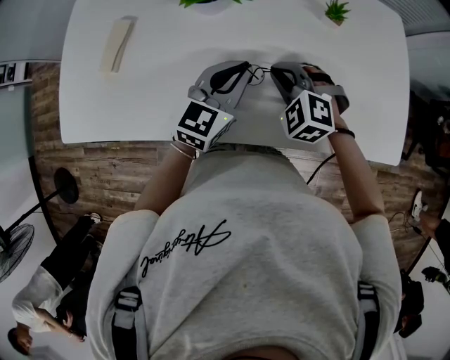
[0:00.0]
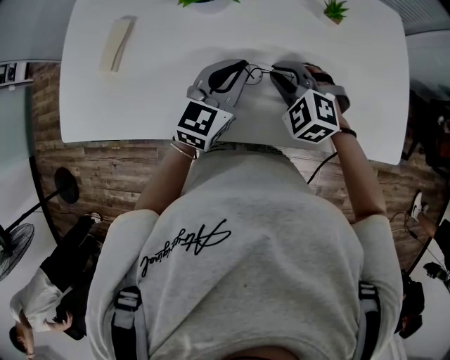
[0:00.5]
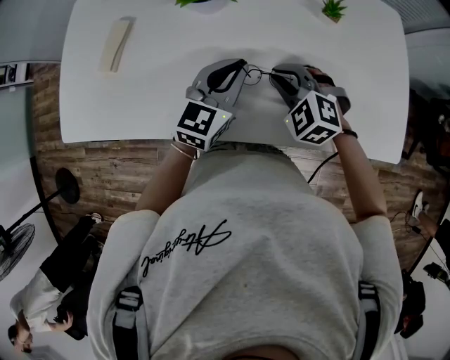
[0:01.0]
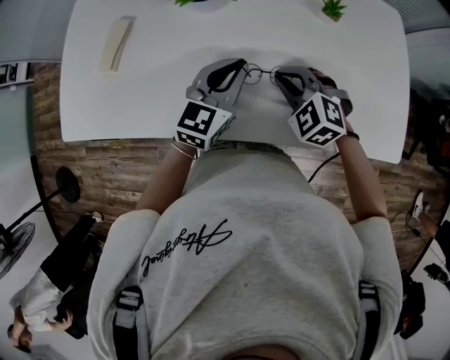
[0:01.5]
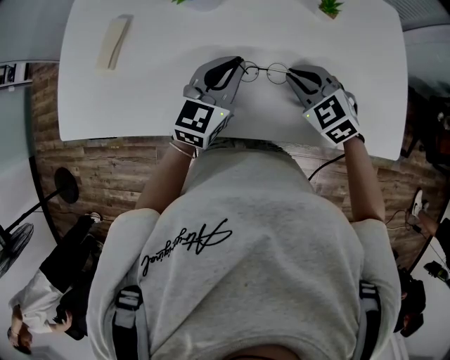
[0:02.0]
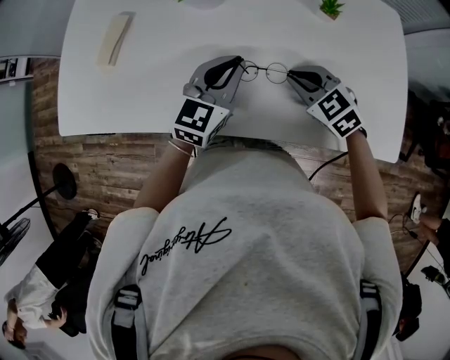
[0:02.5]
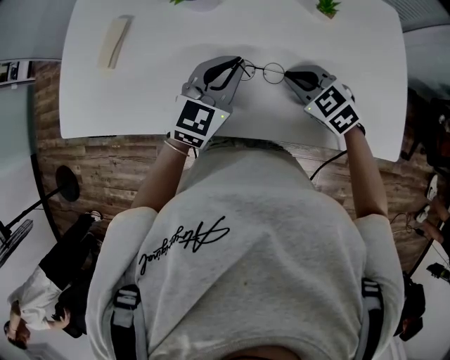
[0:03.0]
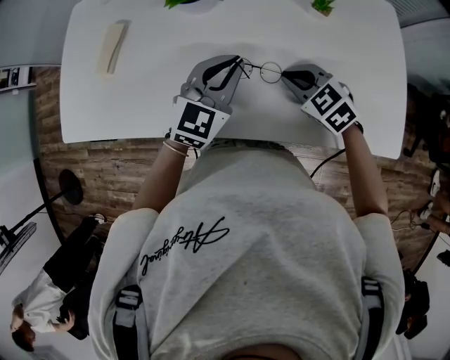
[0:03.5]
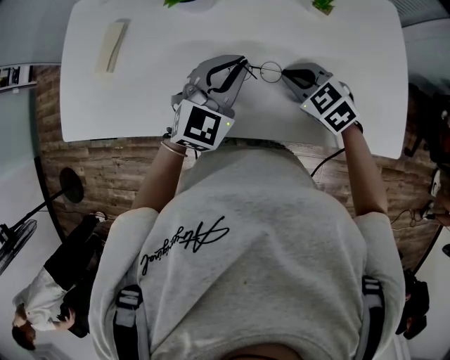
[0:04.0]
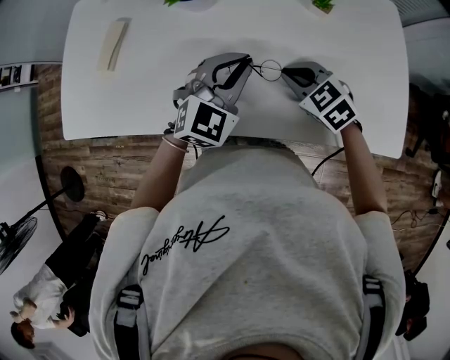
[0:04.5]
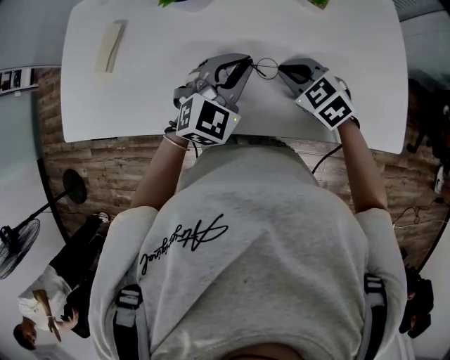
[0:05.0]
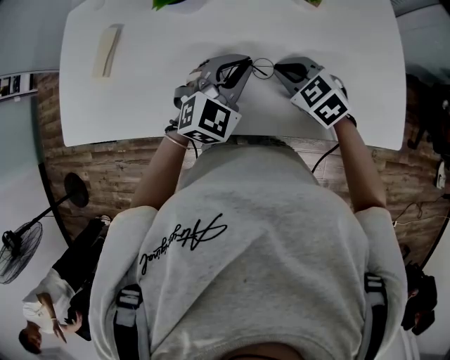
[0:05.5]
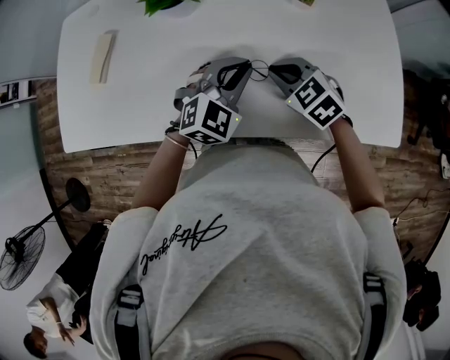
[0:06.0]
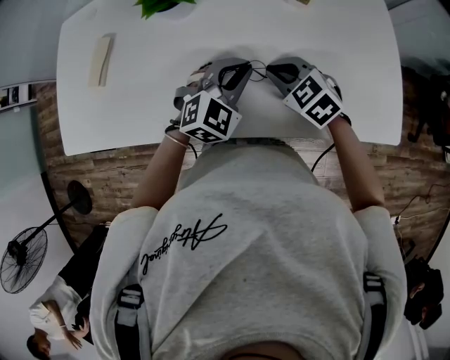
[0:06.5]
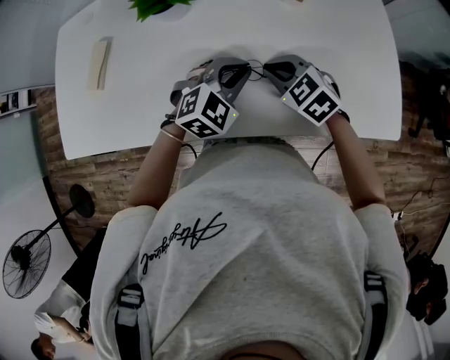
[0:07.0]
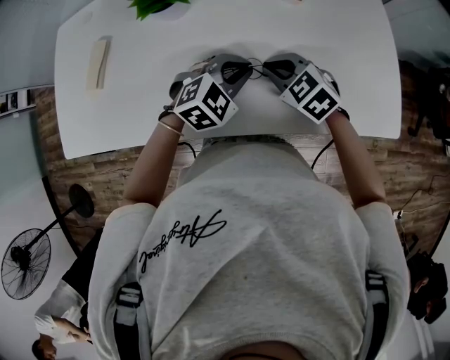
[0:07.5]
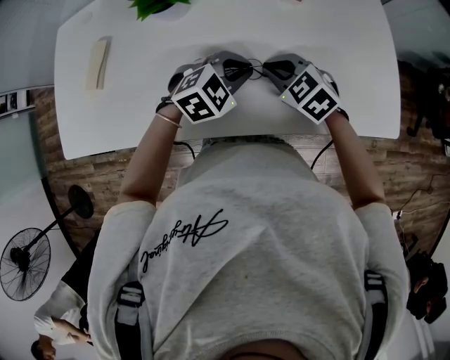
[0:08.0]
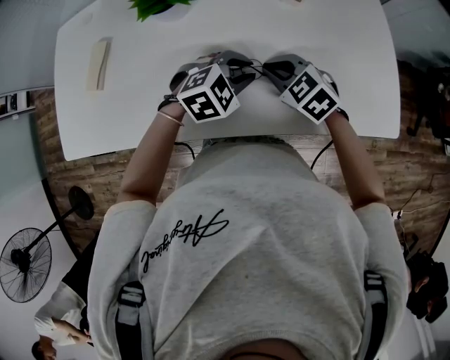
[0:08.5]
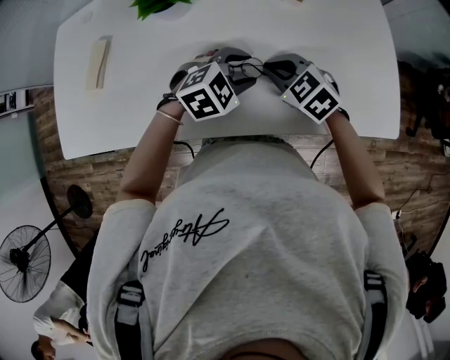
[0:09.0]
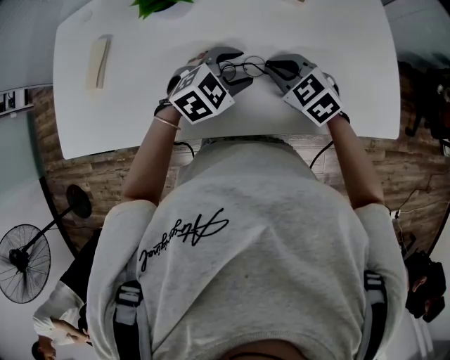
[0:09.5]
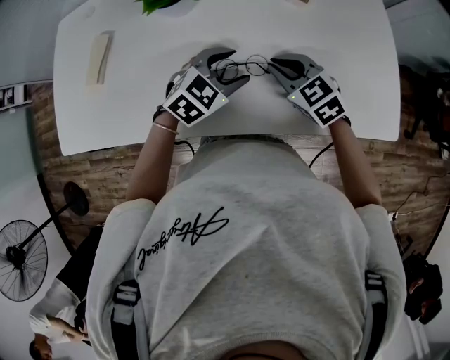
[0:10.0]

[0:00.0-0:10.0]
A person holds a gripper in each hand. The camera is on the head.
0:00.0 to 0:02.0: The right gripper goes approximately 5 cm to the right, and changes its angle by about 20 degrees.
0:02.0 to 0:04.0: The left gripper swivels approximately 20 degrees.
0:04.0 to 0:06.0: The left gripper shifts by roughly 5 cm.
0:06.0 to 0:08.0: The left gripper turns by approximately 20 degrees.
0:08.0 to 0:10.0: The left gripper opens.

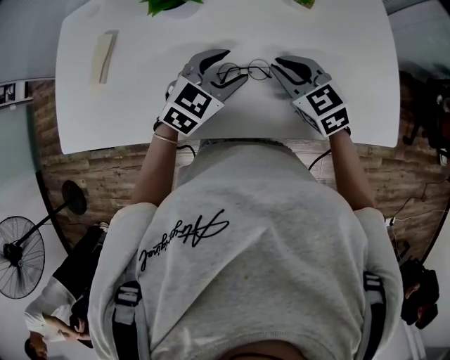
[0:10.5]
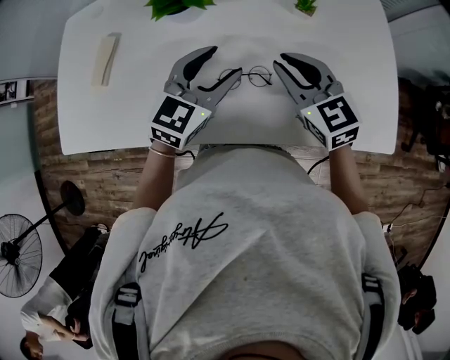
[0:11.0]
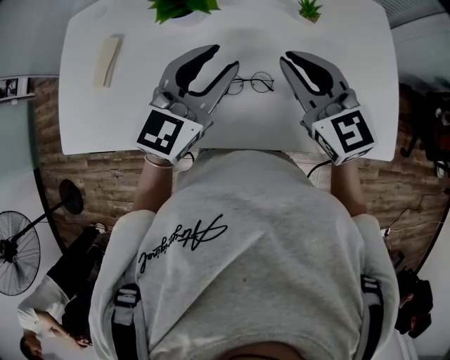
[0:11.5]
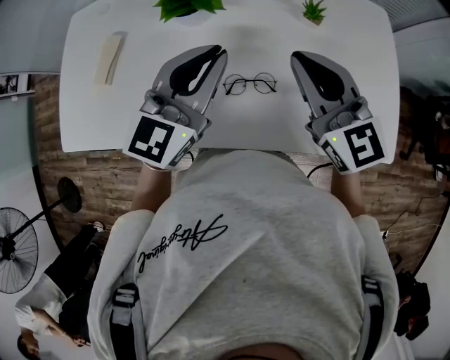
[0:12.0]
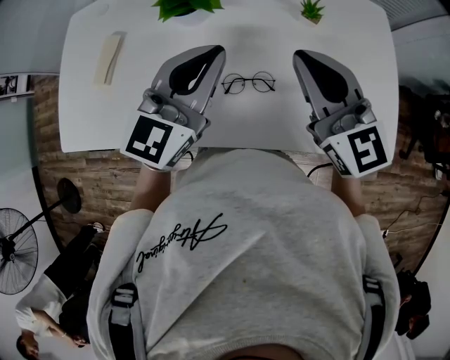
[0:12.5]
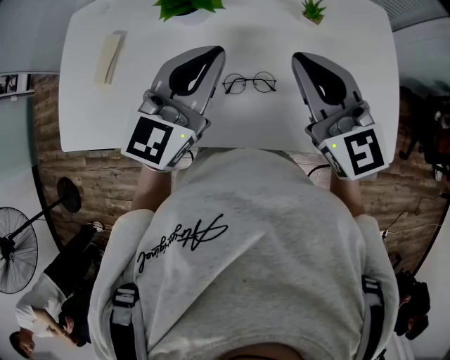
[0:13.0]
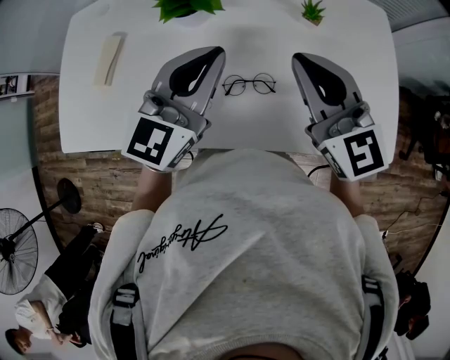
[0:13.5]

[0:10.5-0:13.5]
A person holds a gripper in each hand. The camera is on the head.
0:10.5 to 0:12.0: Both grippers move upward, roughly 15 cm. The left gripper swivels approximately 30 degrees, and closes its fingers. Meanwhile the right gripper turns by about 30 degrees.
0:12.0 to 0:13.5: The grippers stay close to where they were, moving slightly.

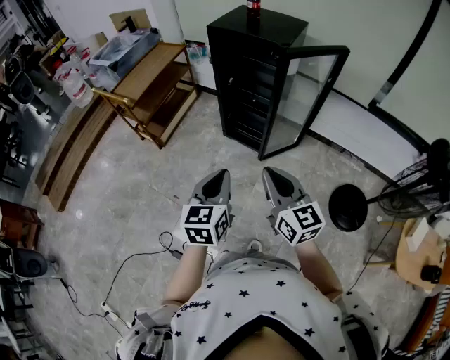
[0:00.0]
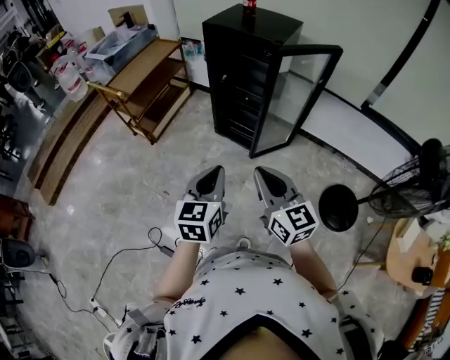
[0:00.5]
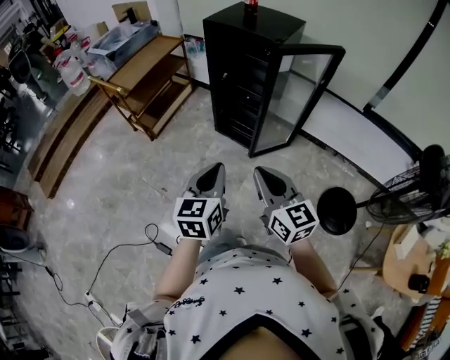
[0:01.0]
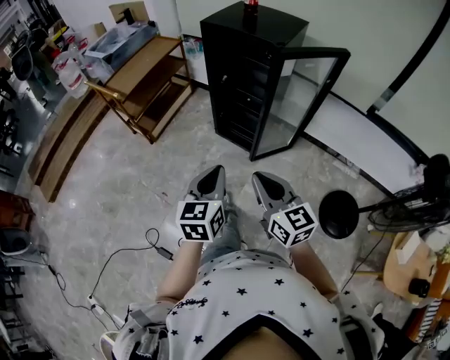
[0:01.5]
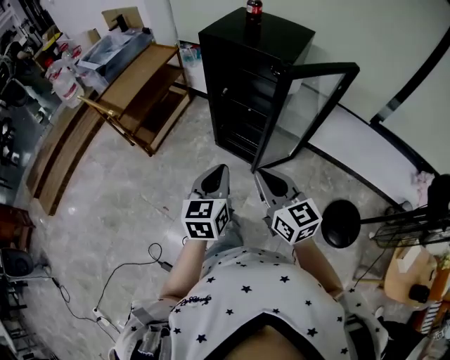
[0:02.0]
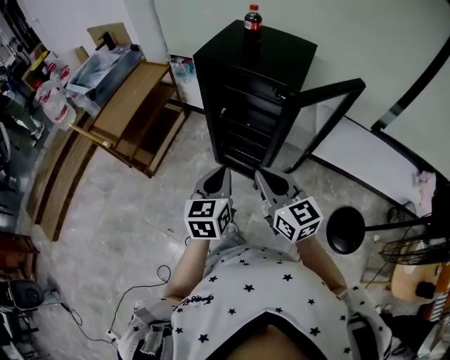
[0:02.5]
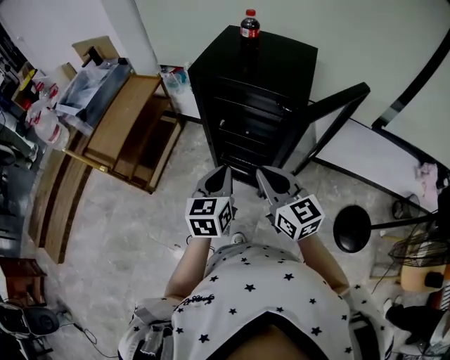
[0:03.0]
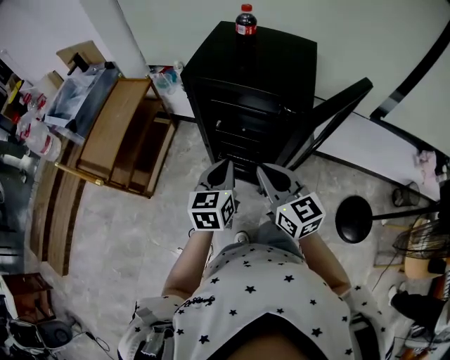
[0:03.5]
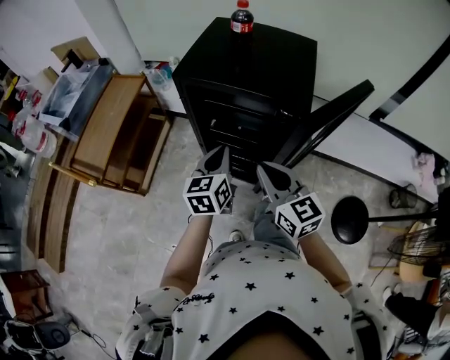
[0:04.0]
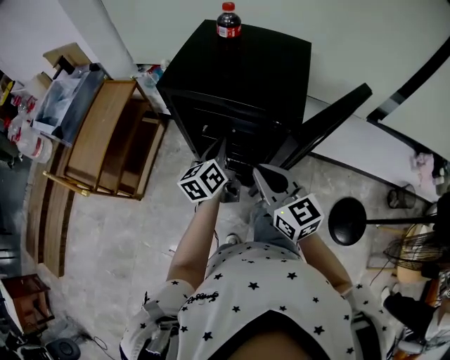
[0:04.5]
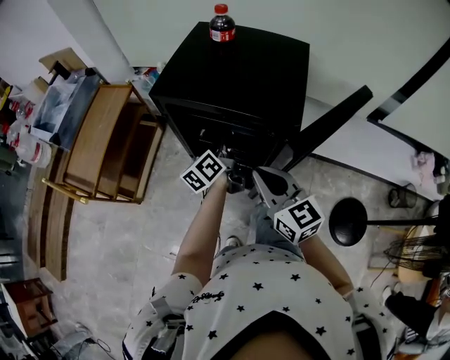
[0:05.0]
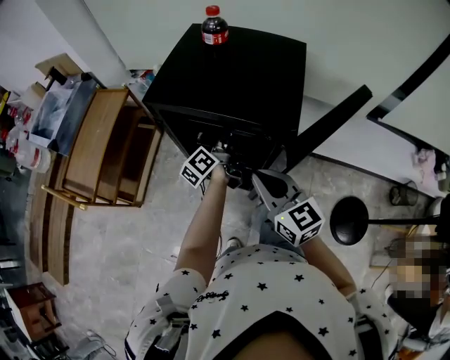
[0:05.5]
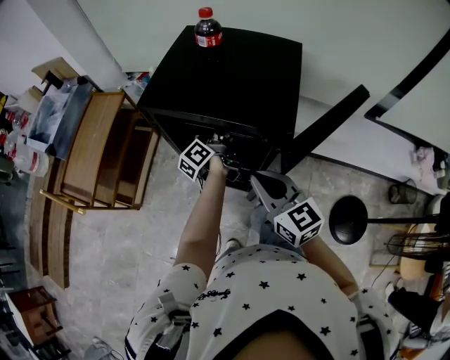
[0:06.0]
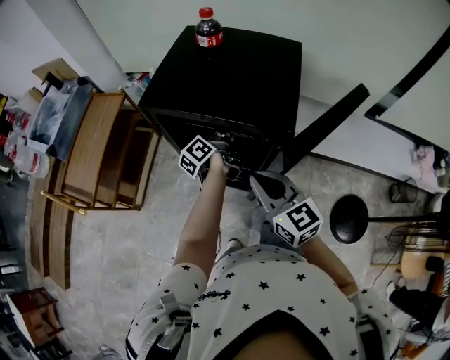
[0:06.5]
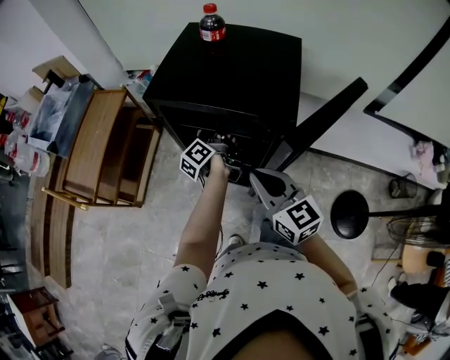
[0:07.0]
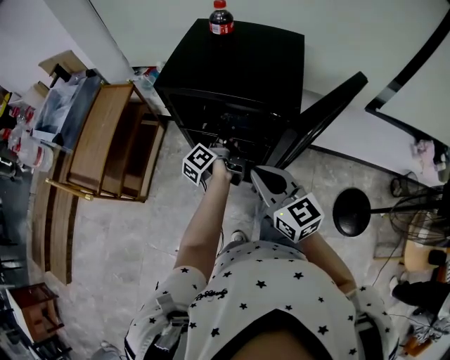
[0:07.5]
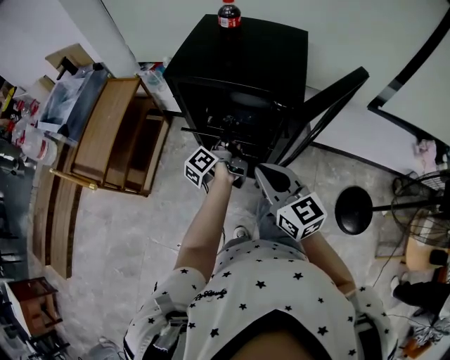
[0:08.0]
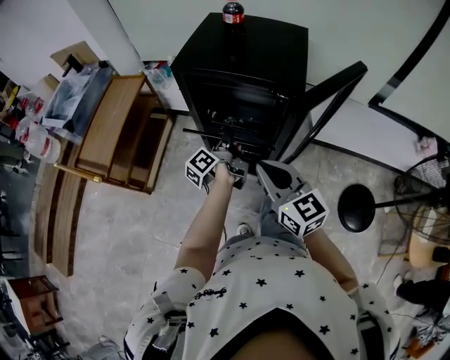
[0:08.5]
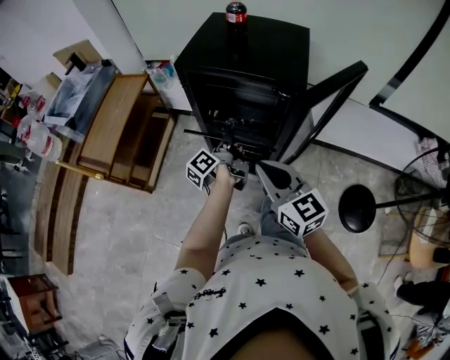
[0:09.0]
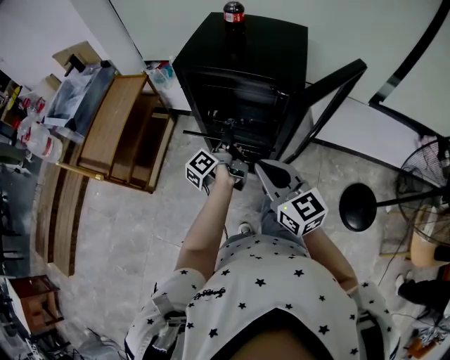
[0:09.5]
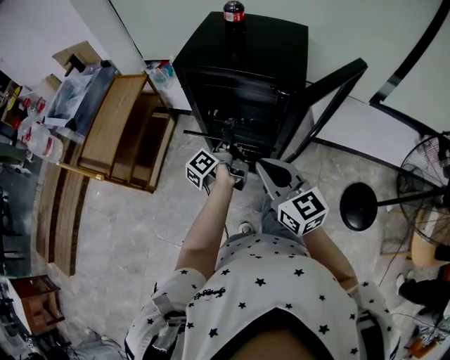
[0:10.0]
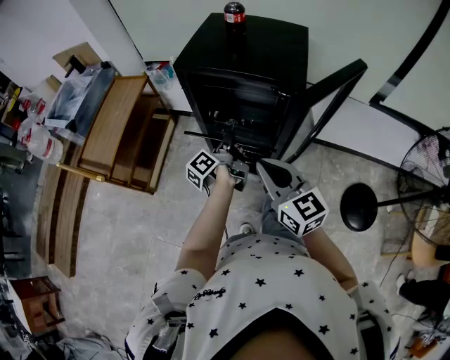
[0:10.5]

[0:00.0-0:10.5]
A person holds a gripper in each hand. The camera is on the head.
0:00.0 to 0:02.0: The two grippers go some 15 cm forward.
0:02.0 to 0:04.0: The grippers both shift forward by about 30 cm.
0:04.0 to 0:06.5: The right gripper goes roughly 5 cm forward. Meanwhile the left gripper moves forward and to the right, approximately 20 cm, rotates around the line of its fingers by approximately 50 degrees, counterclockwise from behind, and opens, then closes once more.
0:06.5 to 0:08.5: Both grippers move backward and to the left, roughly 15 cm.
0:08.5 to 0:10.5: The grippers make only small movements.

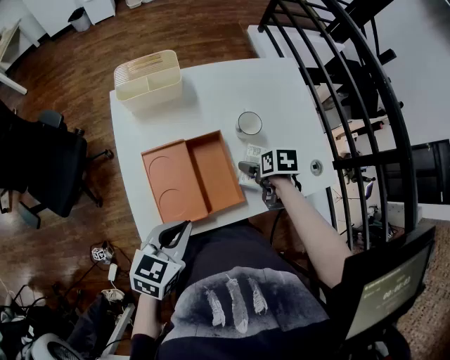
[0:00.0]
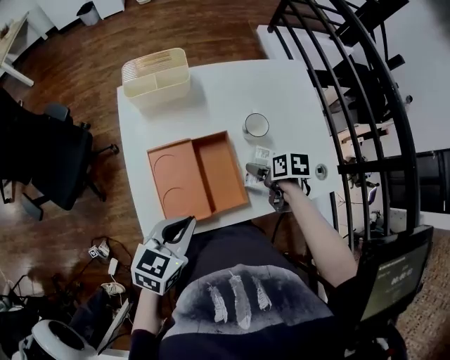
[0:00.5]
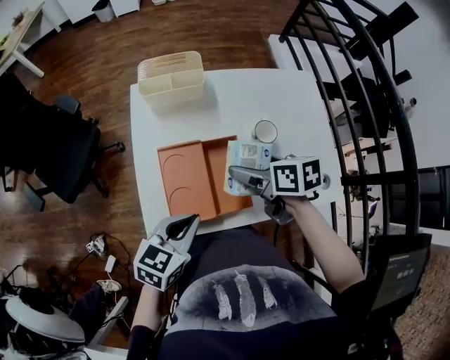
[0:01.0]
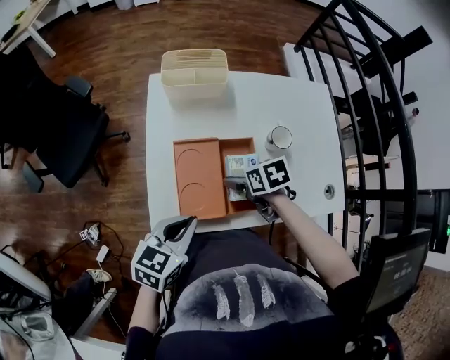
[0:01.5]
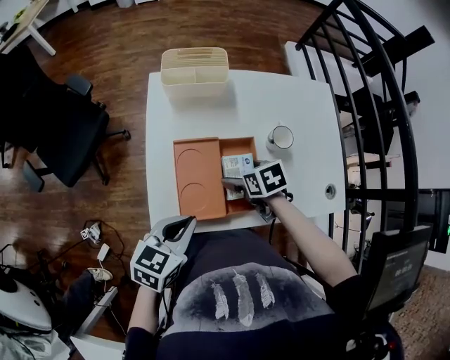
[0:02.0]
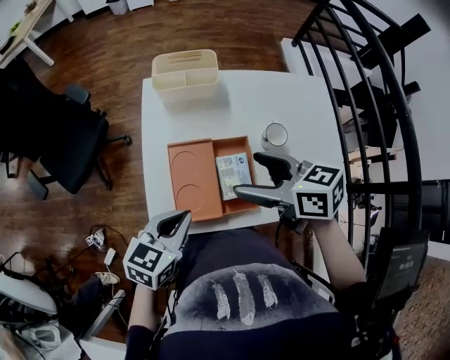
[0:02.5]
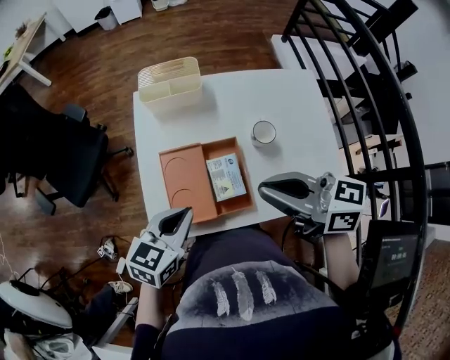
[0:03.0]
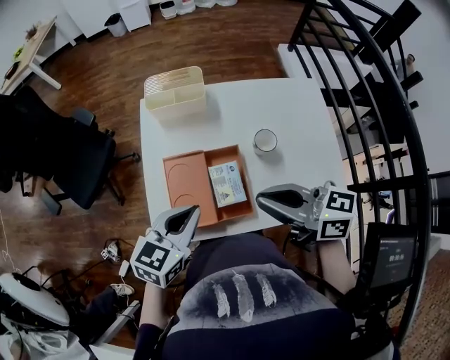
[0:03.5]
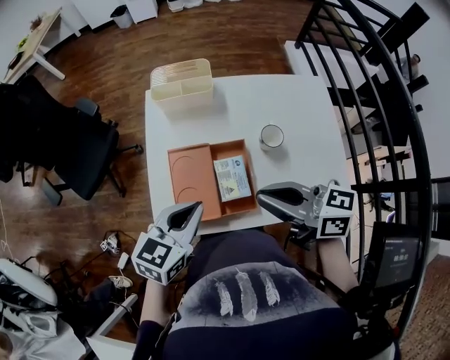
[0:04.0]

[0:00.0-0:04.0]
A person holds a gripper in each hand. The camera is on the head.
0:00.0 to 0:02.0: The right gripper moves to the left, some 15 cm, and turns by about 30 degrees.
0:02.0 to 0:04.0: The right gripper moves upward, roughly 25 cm, tips its fingers upward by about 50 degrees, and closes up. Meanwhile the left gripper is displaced upward and to the right by some 10 cm.
